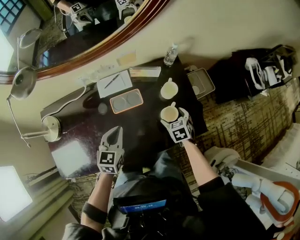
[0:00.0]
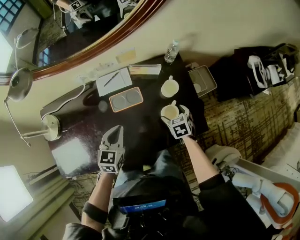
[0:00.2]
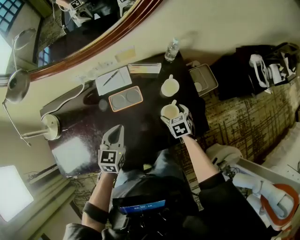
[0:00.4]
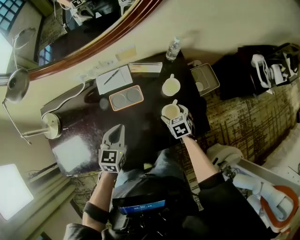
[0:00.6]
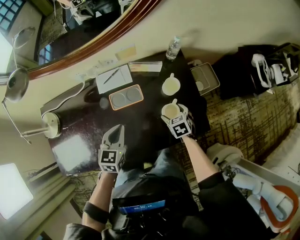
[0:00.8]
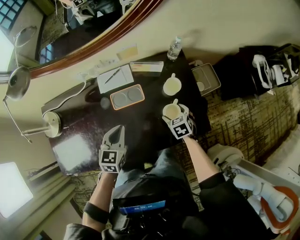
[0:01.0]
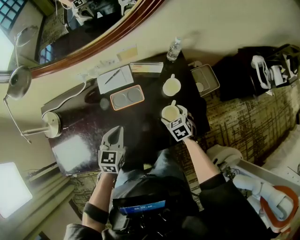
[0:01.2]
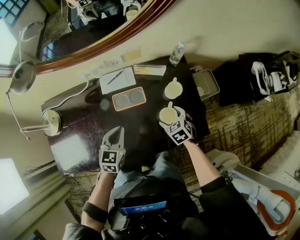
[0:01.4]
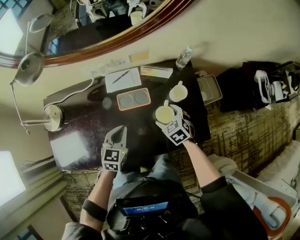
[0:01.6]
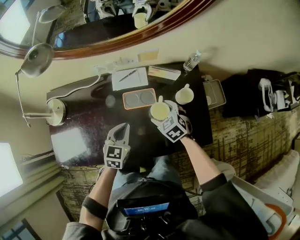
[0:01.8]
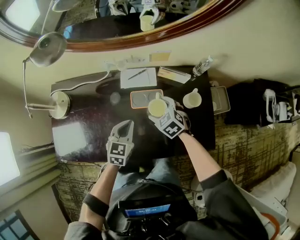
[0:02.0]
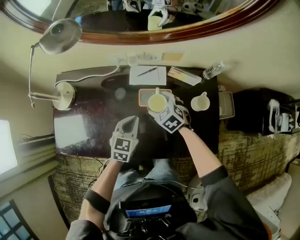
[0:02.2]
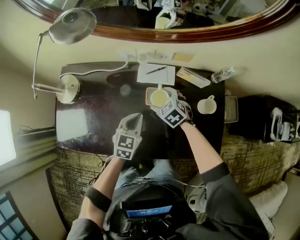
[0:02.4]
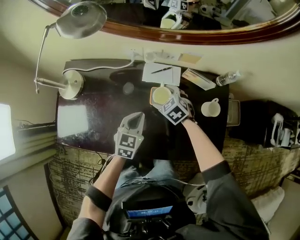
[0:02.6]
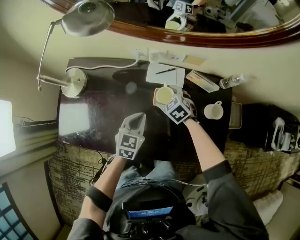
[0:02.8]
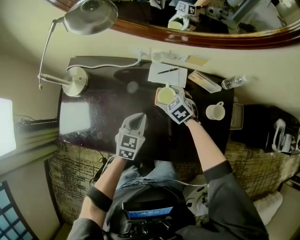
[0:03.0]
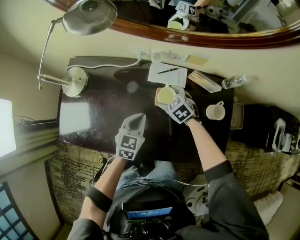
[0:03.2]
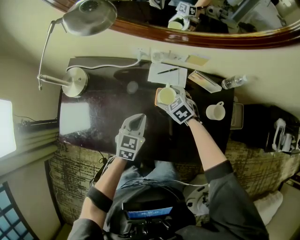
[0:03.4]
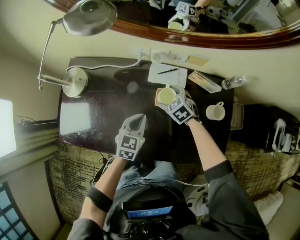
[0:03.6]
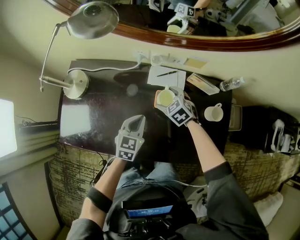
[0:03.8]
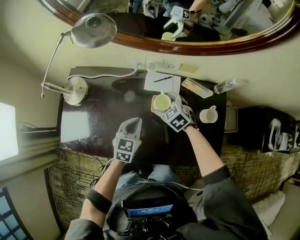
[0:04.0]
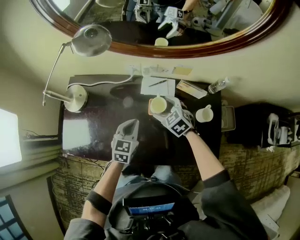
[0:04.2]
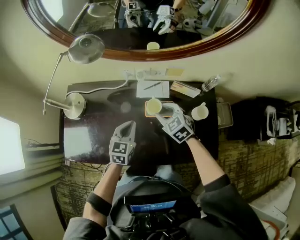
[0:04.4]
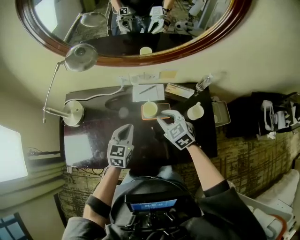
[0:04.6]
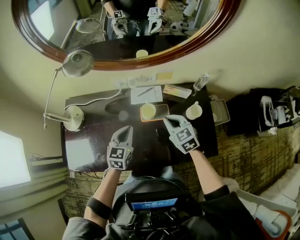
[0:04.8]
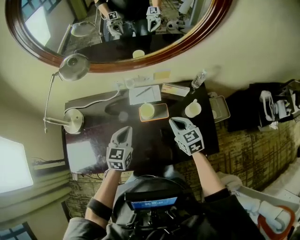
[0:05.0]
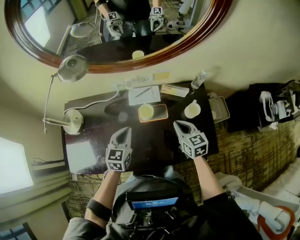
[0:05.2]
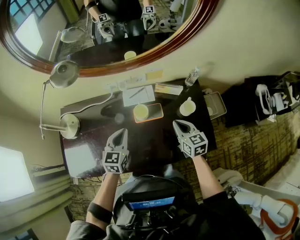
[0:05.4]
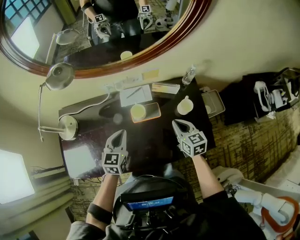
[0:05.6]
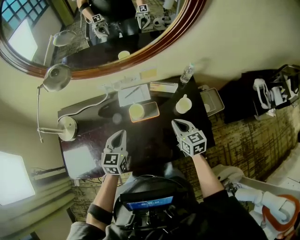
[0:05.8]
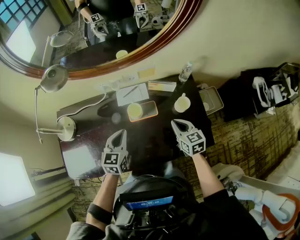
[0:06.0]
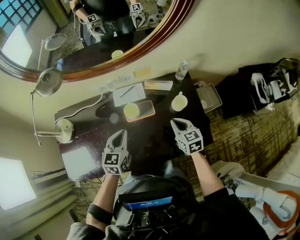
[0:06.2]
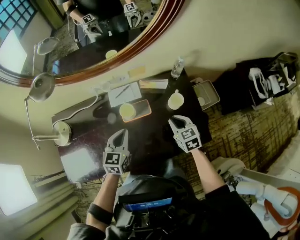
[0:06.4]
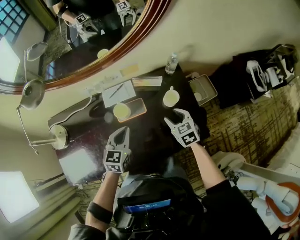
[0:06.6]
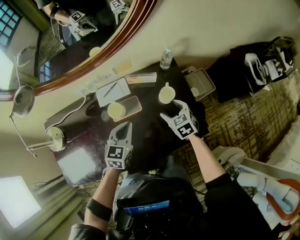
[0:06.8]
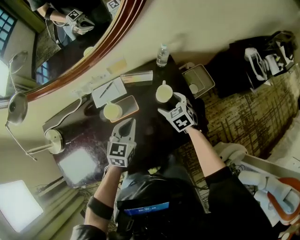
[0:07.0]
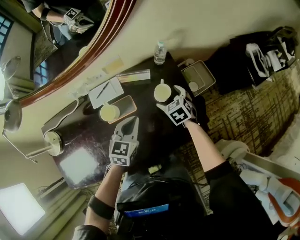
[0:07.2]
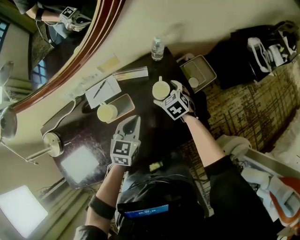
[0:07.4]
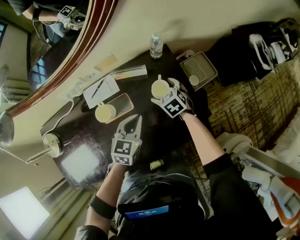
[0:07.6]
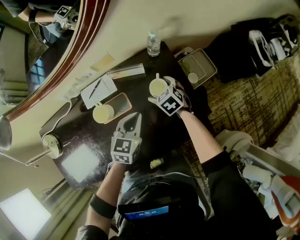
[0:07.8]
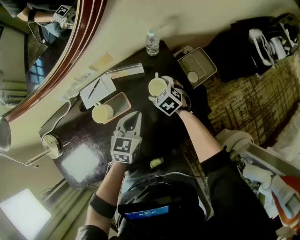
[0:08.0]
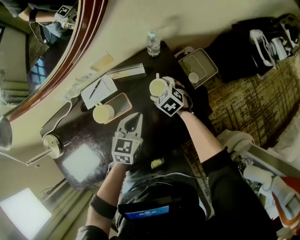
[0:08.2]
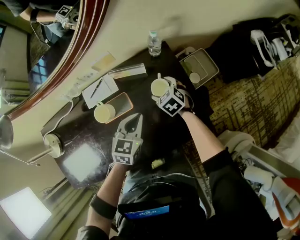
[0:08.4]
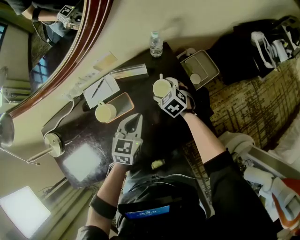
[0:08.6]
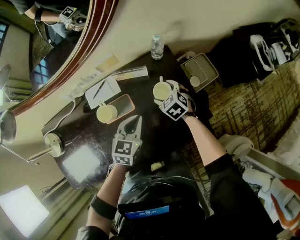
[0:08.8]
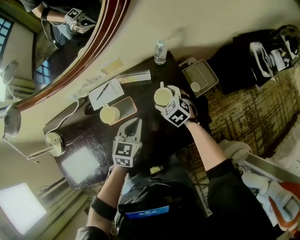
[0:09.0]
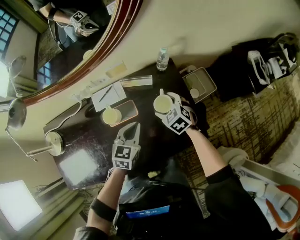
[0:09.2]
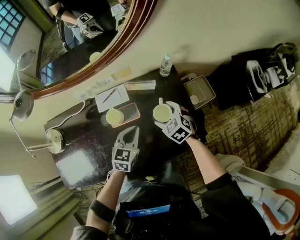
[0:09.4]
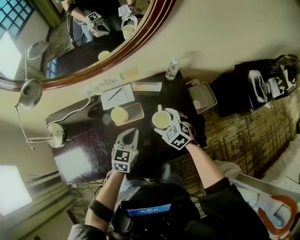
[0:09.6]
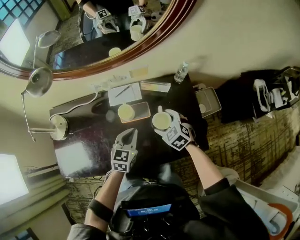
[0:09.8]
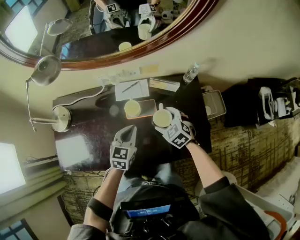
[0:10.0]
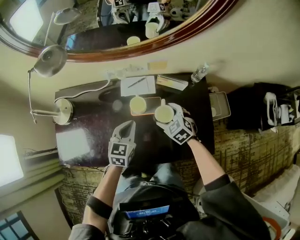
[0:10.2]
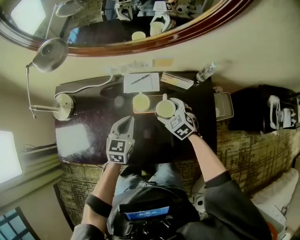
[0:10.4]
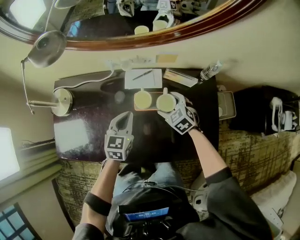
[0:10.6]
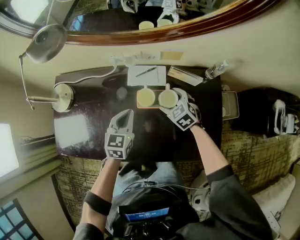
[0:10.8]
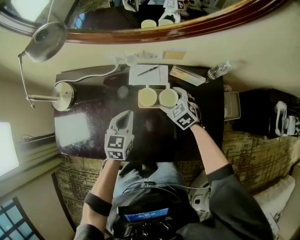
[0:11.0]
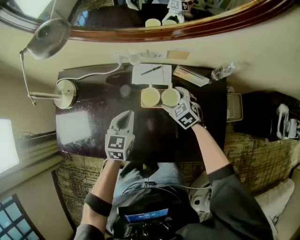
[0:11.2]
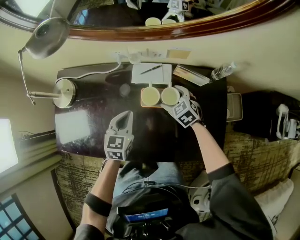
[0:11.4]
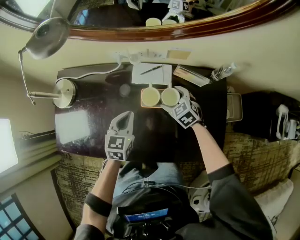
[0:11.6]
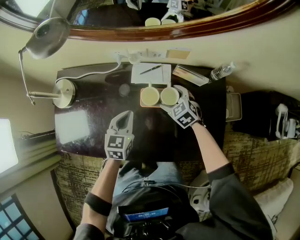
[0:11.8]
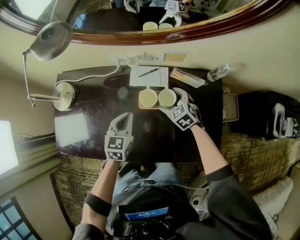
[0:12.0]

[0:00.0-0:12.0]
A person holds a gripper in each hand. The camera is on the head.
0:00.0 to 0:01.6: The right gripper travels to the left by roughly 10 cm, and rotates roughly 20 degrees.
0:01.6 to 0:03.0: The right gripper goes approximately 25 cm to the left and forward, and changes its angle by roughly 20 degrees. Meanwhile the left gripper is displaced to the left by roughly 5 cm.
0:03.0 to 0:04.4: The right gripper goes approximately 15 cm upward, and closes its fingers. The left gripper is displaced upward by roughly 5 cm.
0:04.4 to 0:06.0: The right gripper goes some 20 cm to the right and backward, and turns by roughly 40 degrees.
0:06.0 to 0:07.6: The right gripper moves downward, forward and to the right, roughly 20 cm, rotates about 20 degrees, and opens its fingers, while the left gripper heads to the right, covering about 20 cm, and swivels roughly 20 degrees.
0:07.6 to 0:09.0: The grippers move only a little.
0:09.0 to 0:10.4: The grippers both shift to the left by about 20 cm. The right gripper rotates approximately 20 degrees; the left gripper turns by about 30 degrees.
0:10.4 to 0:12.0: The right gripper ends up approximately 5 cm from where it was.

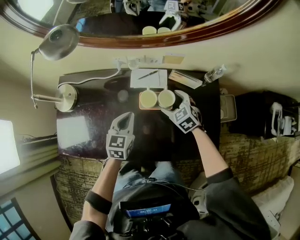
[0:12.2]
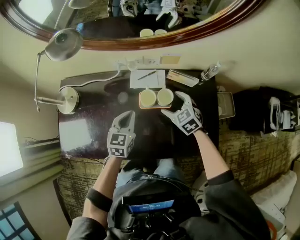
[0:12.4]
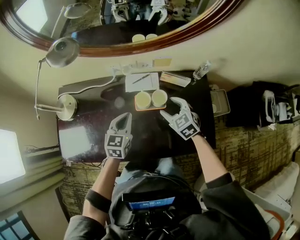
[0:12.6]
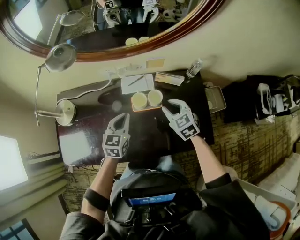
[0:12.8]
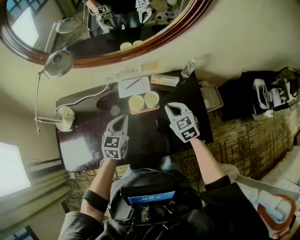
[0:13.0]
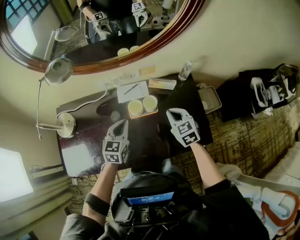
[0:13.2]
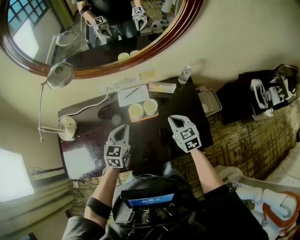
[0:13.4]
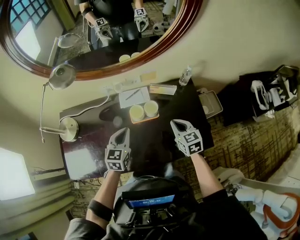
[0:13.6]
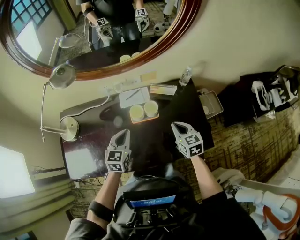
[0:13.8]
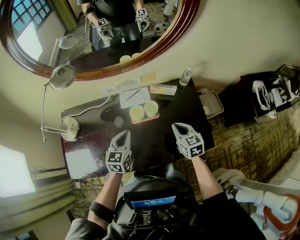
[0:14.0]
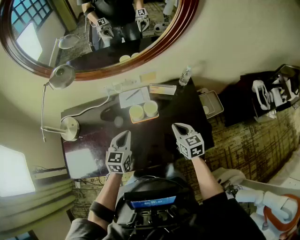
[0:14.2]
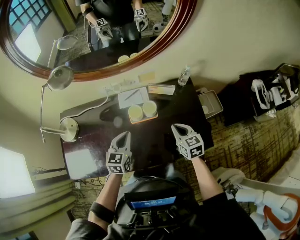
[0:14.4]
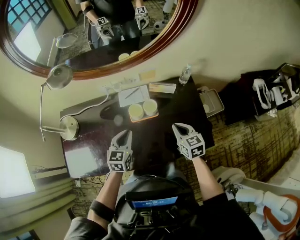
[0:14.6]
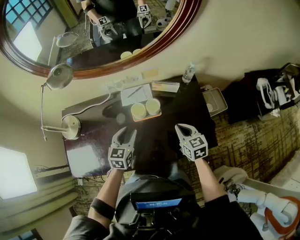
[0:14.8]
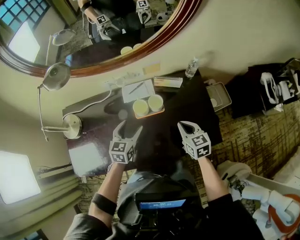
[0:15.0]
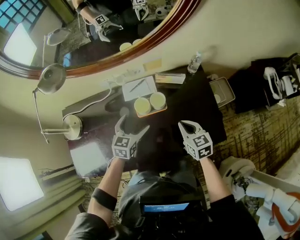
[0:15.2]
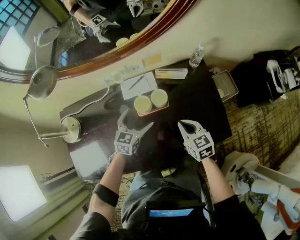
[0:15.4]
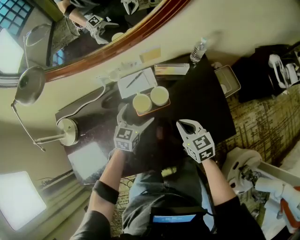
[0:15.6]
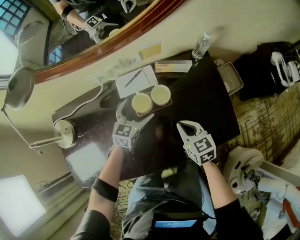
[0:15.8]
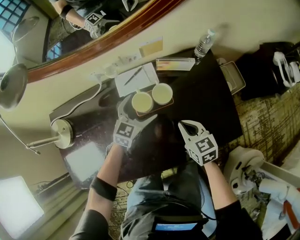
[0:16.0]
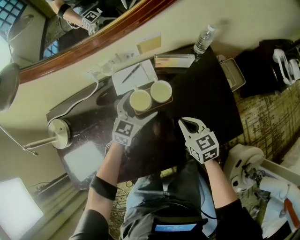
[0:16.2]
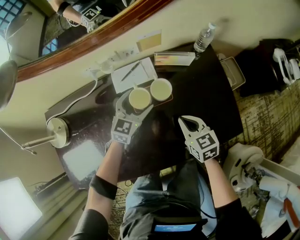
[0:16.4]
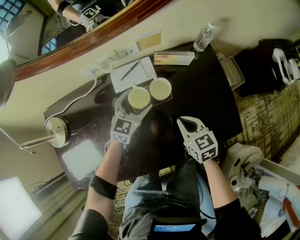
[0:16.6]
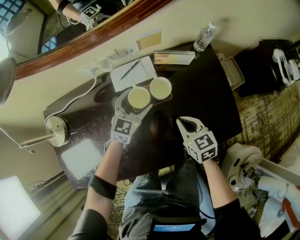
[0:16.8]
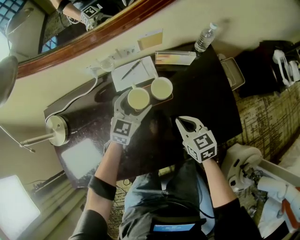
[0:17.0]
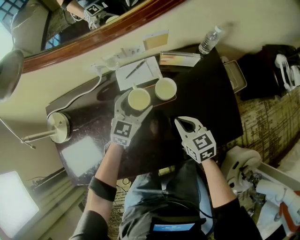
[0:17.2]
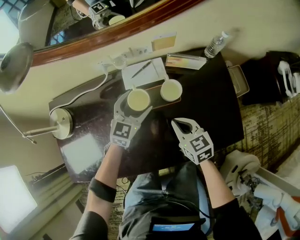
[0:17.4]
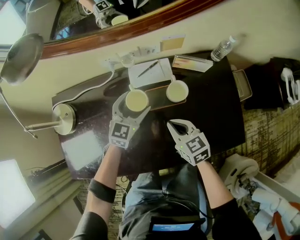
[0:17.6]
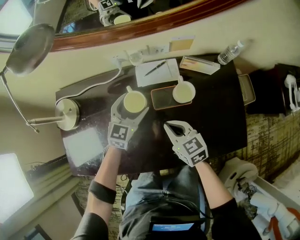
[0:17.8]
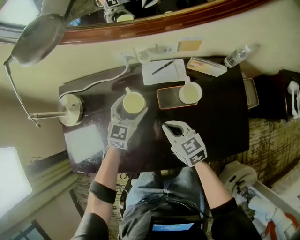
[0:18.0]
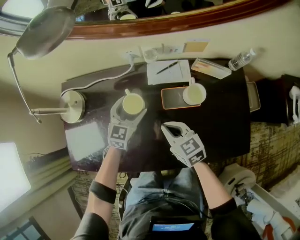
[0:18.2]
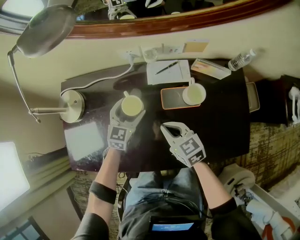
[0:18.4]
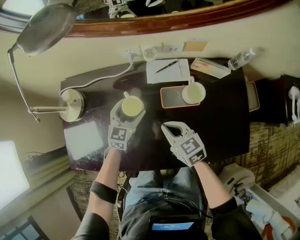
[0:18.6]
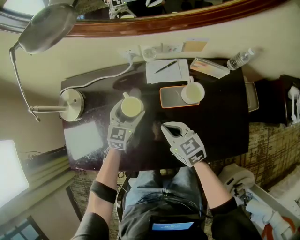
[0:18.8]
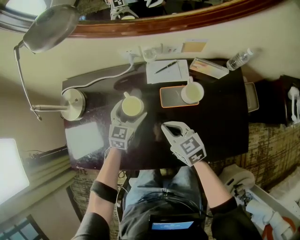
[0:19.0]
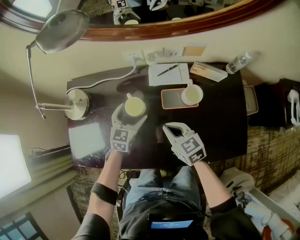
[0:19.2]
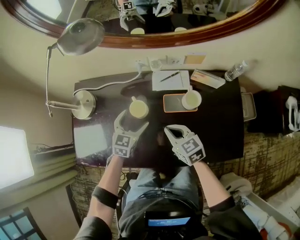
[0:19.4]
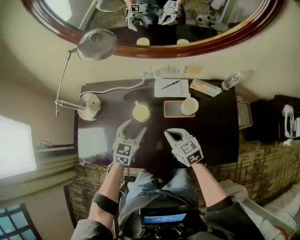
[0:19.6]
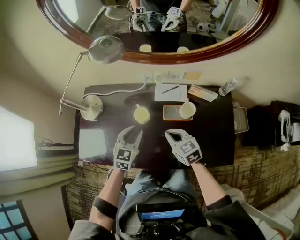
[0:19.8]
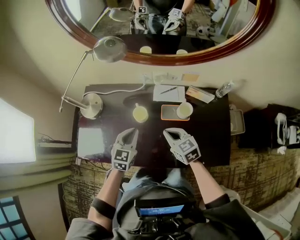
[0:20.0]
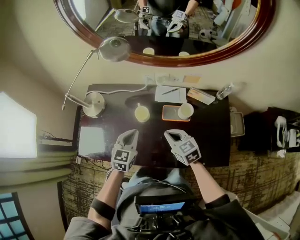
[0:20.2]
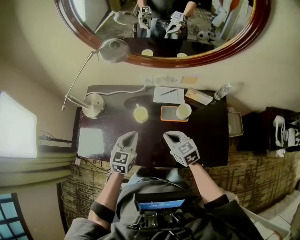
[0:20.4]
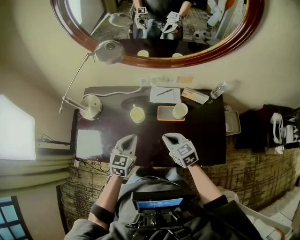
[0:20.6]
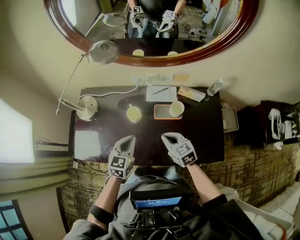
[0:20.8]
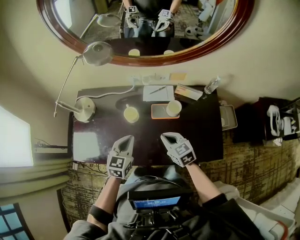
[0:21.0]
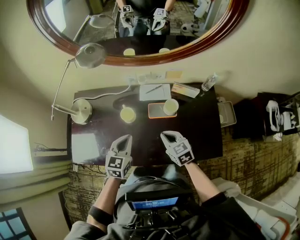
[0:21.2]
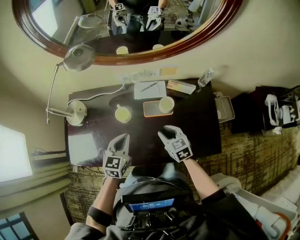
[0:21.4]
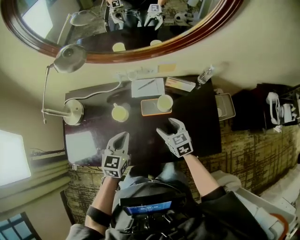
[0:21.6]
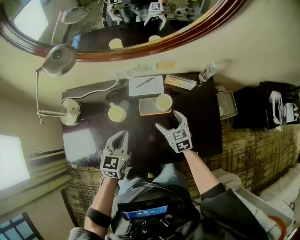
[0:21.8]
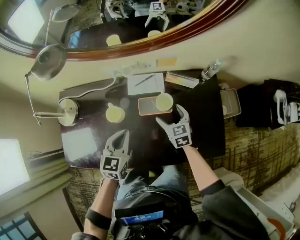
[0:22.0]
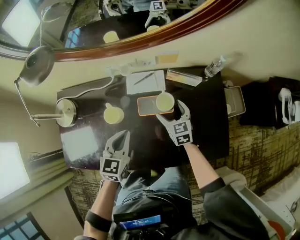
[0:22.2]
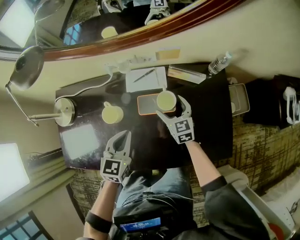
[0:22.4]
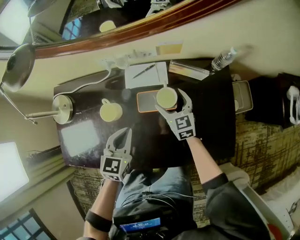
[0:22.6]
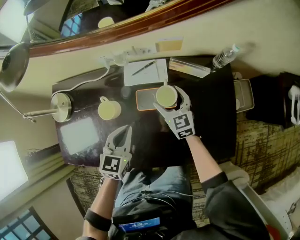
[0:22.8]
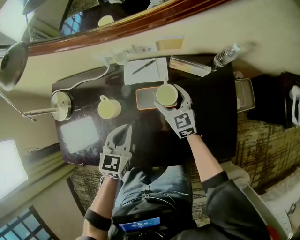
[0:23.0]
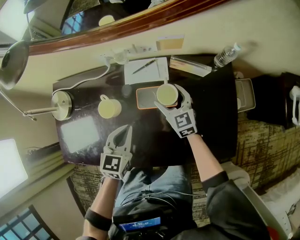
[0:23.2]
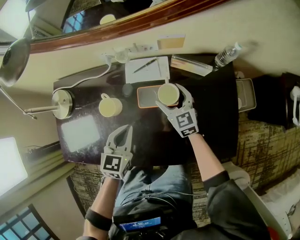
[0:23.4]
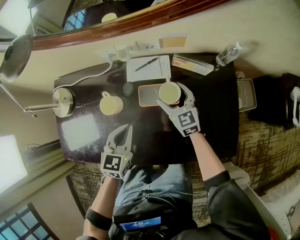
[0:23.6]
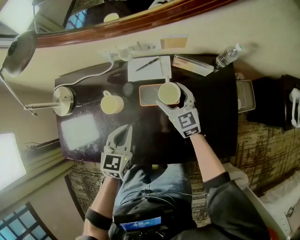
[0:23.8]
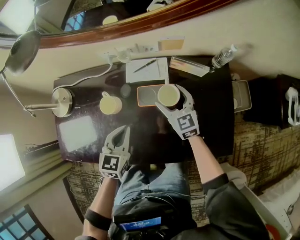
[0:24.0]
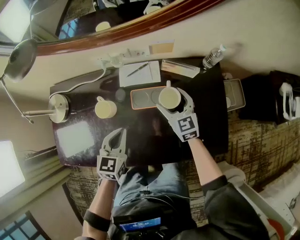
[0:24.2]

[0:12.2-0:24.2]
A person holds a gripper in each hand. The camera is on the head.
0:12.2 to 0:13.8: The left gripper heads upward, covering approximately 5 cm, while the right gripper is displaced backward, upward and to the right by some 20 cm, changes its angle by roughly 40 degrees, and closes its fingers.
0:13.8 to 0:15.2: The left gripper moves downward, about 5 cm, and opens its fingers.
0:15.2 to 0:16.6: The left gripper shifts approximately 10 cm forward and downward. The right gripper is displaced downward by some 10 cm.
0:16.6 to 0:18.2: Both grippers travel together to the left, some 20 cm. The left gripper rotates some 20 degrees. The right gripper rotates approximately 20 degrees.
0:18.2 to 0:19.8: The right gripper moves upward, some 10 cm. Meanwhile the left gripper is displaced upward and backward by roughly 15 cm, and closes its fingers.
0:19.8 to 0:21.2: The right gripper moves some 5 cm; the left gripper goes roughly 5 cm backward.
0:21.2 to 0:22.6: The left gripper is displaced downward, to the right and forward by roughly 15 cm. Meanwhile the right gripper is displaced forward, downward and to the right by some 20 cm, and opens its fingers.
0:22.6 to 0:24.2: The right gripper changes place by about 5 cm.
